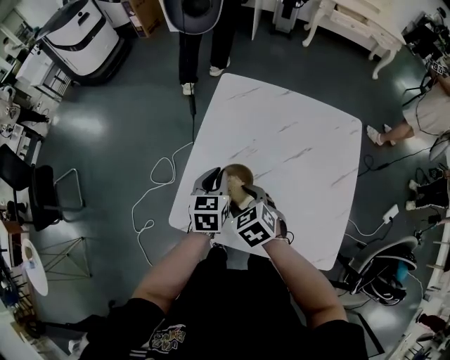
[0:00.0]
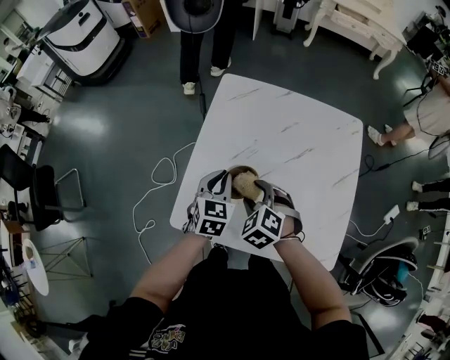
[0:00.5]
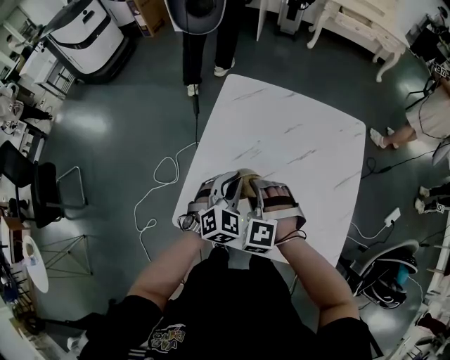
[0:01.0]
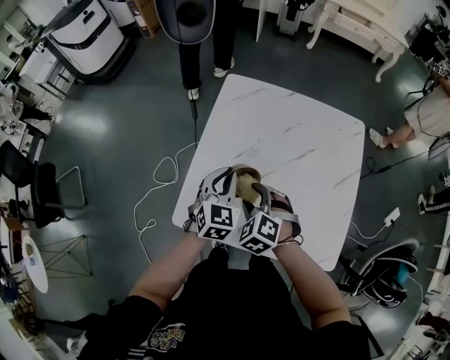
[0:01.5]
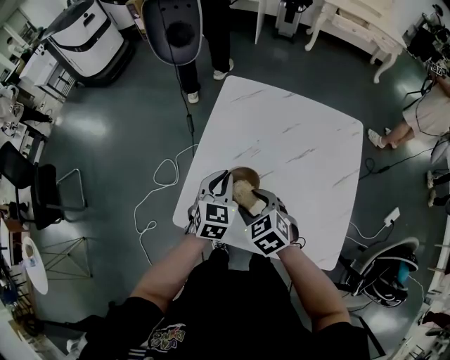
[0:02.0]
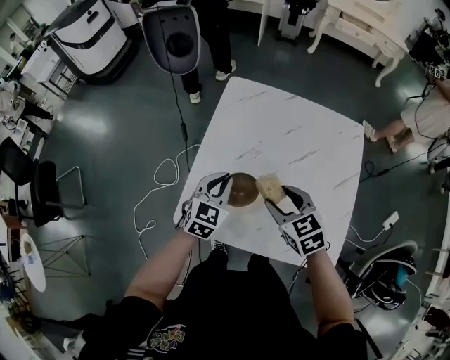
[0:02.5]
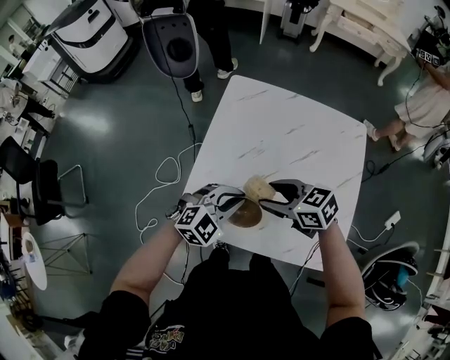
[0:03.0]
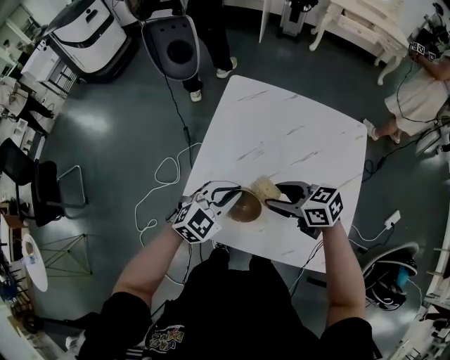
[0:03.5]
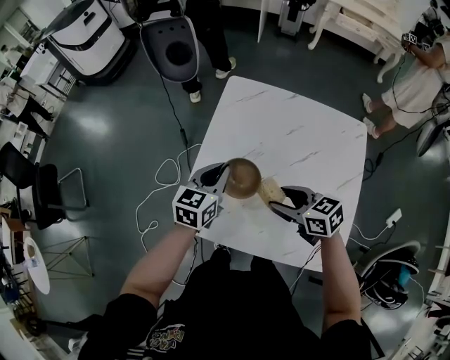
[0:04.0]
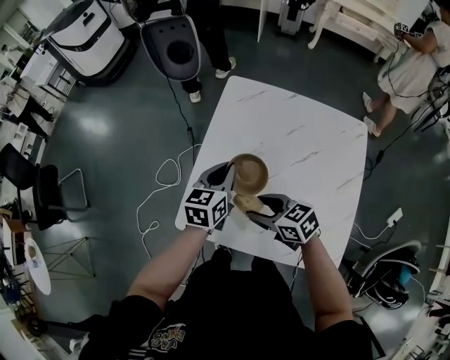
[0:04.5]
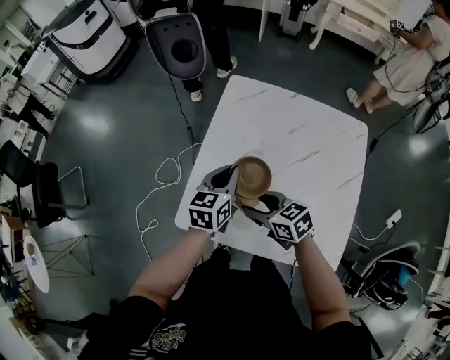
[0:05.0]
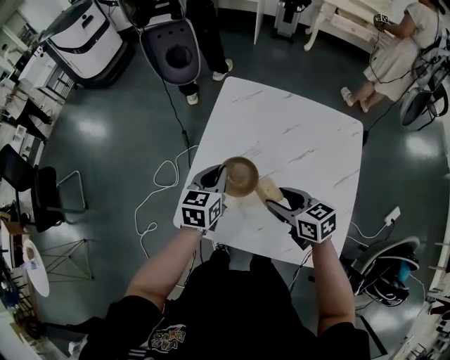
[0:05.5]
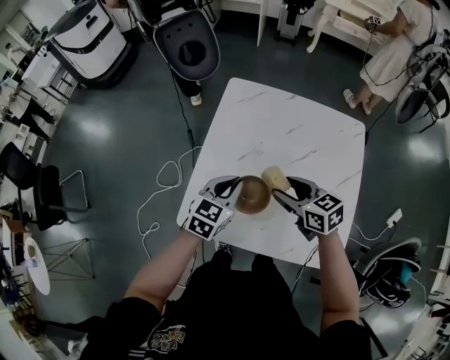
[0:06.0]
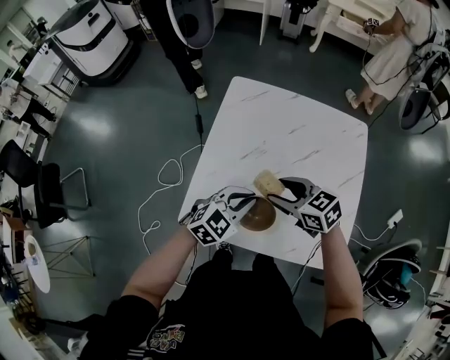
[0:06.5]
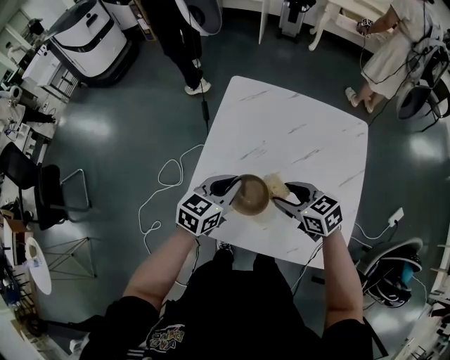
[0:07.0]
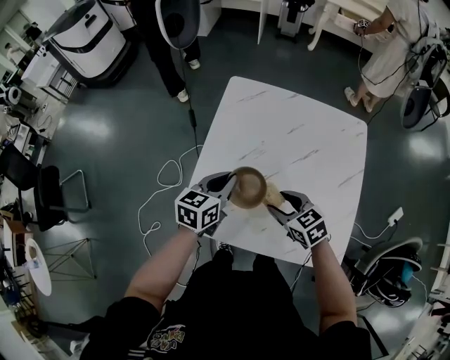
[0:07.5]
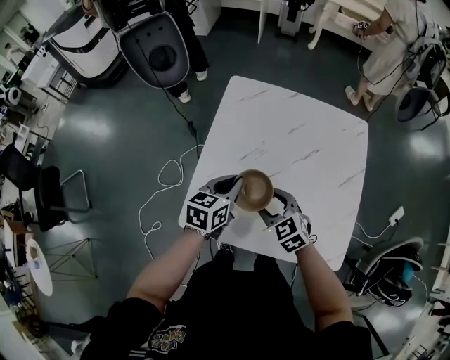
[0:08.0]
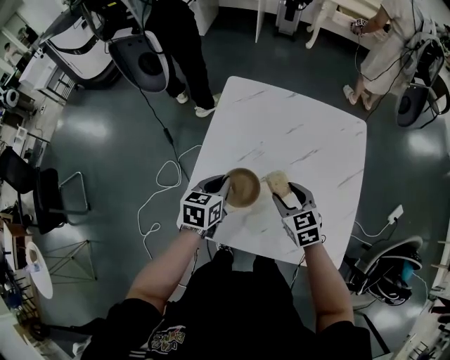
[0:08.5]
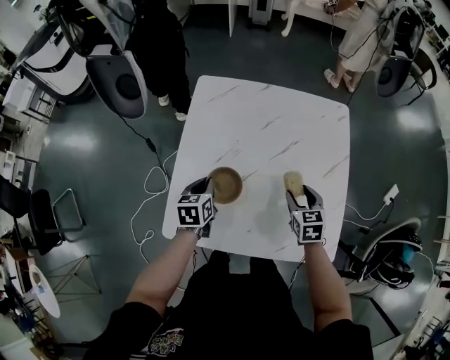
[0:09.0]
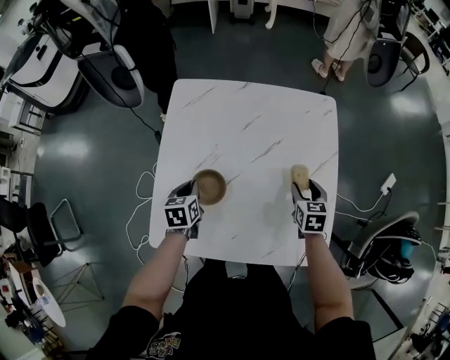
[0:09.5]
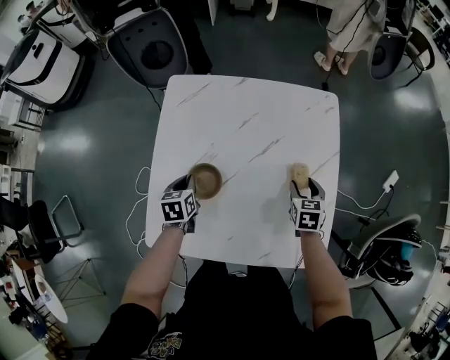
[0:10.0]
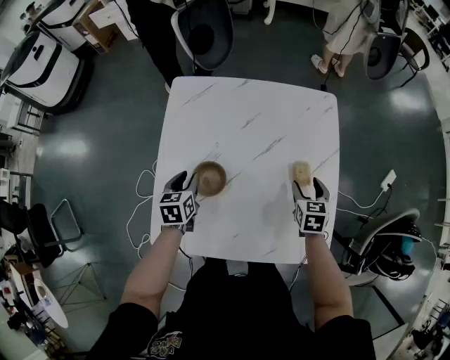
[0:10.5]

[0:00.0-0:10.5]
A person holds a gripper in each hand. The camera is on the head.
0:02.0 to 0:04.0: The left gripper rotates roughly 20 degrees. Meanwhile the right gripper shifts by about 10 cm, and turns by about 30 degrees.
0:04.0 to 0:06.5: The left gripper is displaced backward by approximately 10 cm, and turns by roughly 40 degrees, while the right gripper goes to the left and returns, about 10 cm each way.
0:06.5 to 0:08.5: The right gripper moves downward, some 5 cm, and turns by roughly 30 degrees. The left gripper travels forward and to the left by approximately 10 cm, and rotates around the line of its fingers by approximately 40 degrees, counterclockwise from behind.
0:08.5 to 0:10.5: The right gripper is displaced to the right by approximately 20 cm, and changes its angle by roughly 40 degrees. The left gripper shifts roughly 10 cm downward and forward, and opens up.

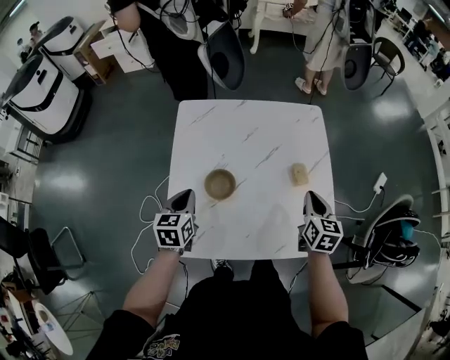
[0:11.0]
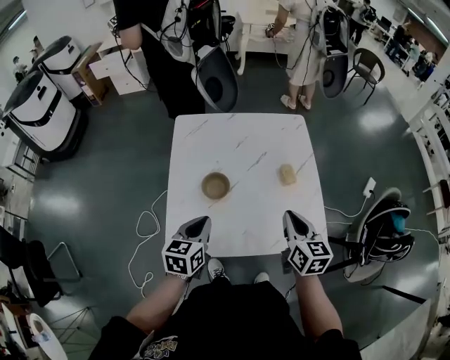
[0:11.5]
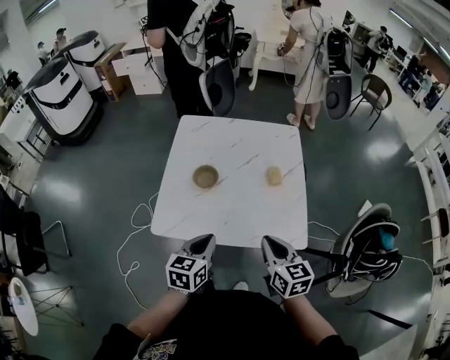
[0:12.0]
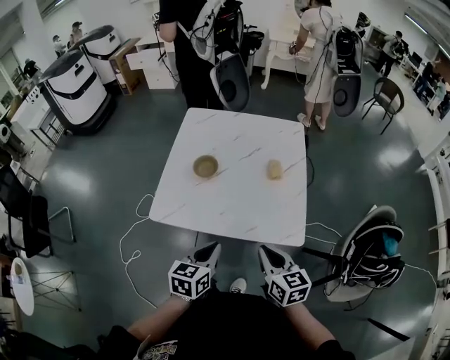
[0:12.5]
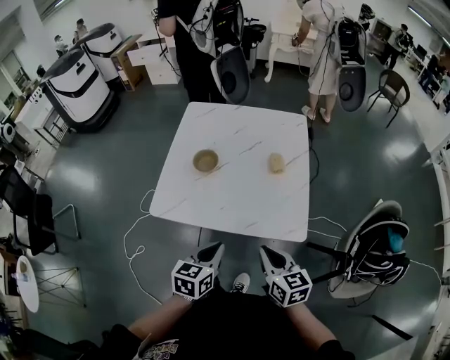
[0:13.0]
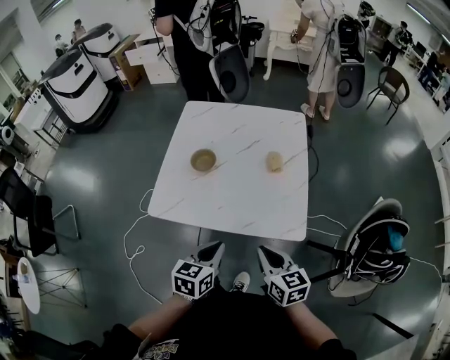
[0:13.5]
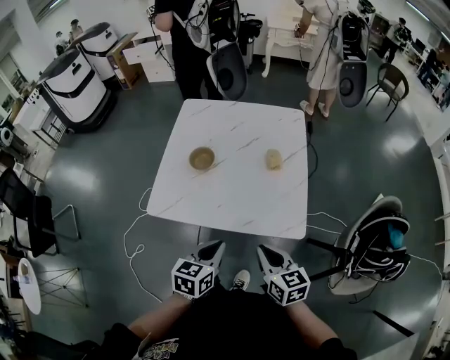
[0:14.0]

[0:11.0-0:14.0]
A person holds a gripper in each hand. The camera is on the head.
0:11.0 to 0:12.5: The right gripper travels backward by roughly 30 cm, and swivels about 30 degrees; the left gripper is displaced backward and to the right by about 35 cm.
0:12.5 to 0:14.0: The grippers make only small movements.

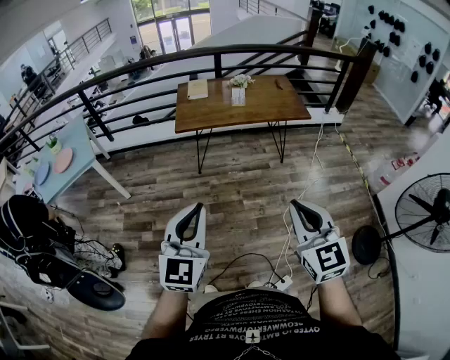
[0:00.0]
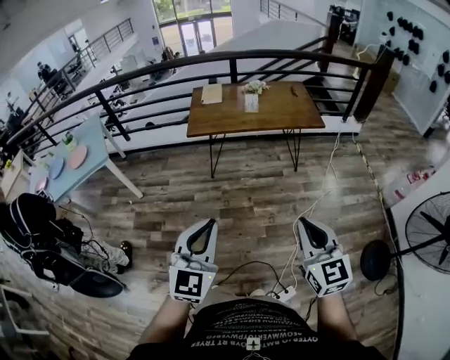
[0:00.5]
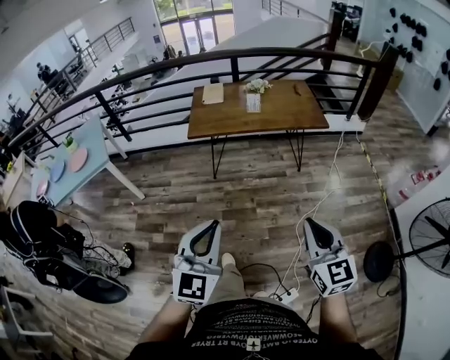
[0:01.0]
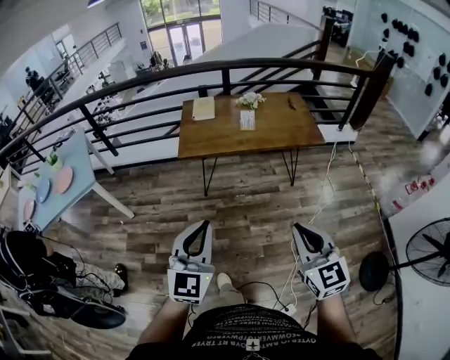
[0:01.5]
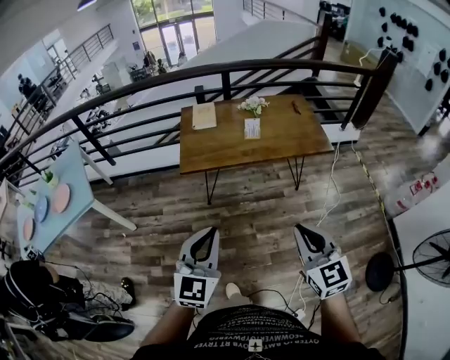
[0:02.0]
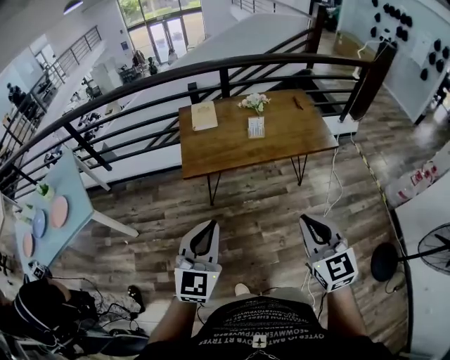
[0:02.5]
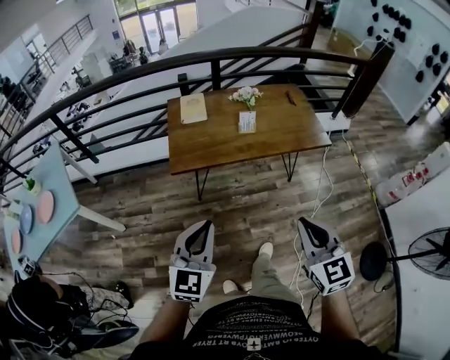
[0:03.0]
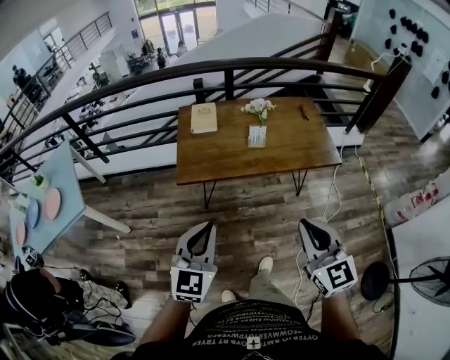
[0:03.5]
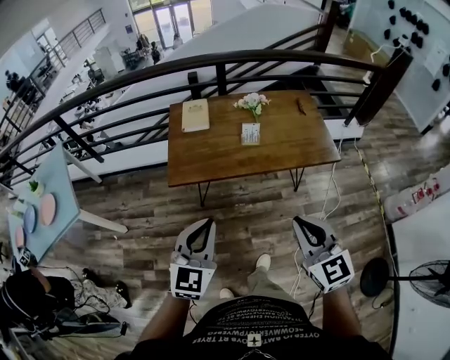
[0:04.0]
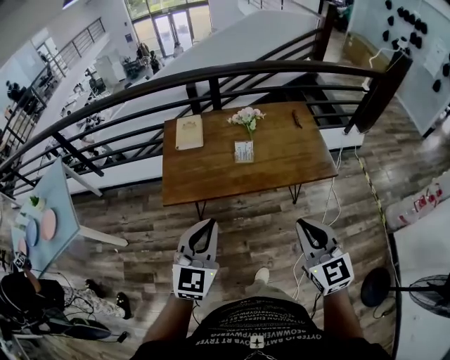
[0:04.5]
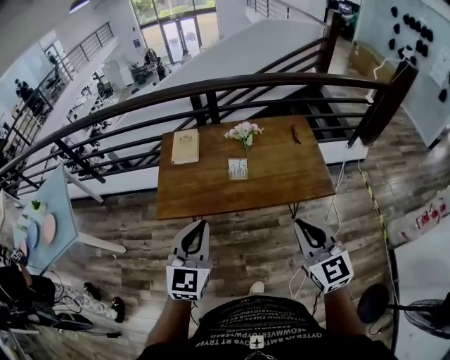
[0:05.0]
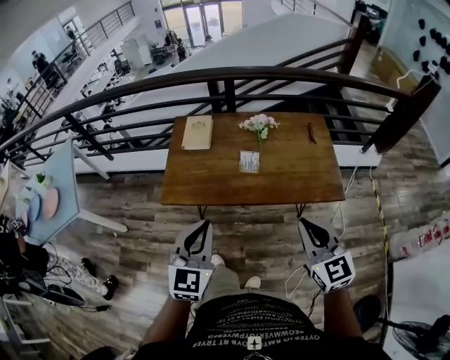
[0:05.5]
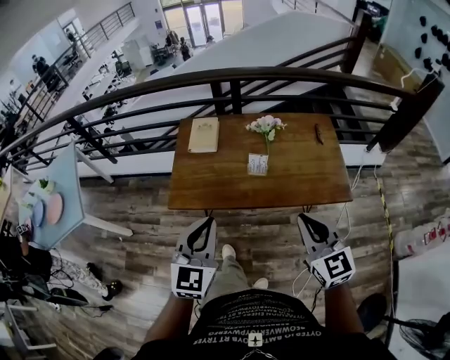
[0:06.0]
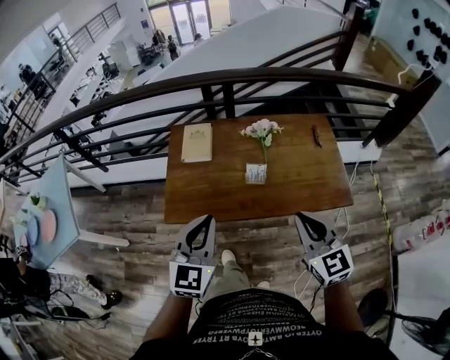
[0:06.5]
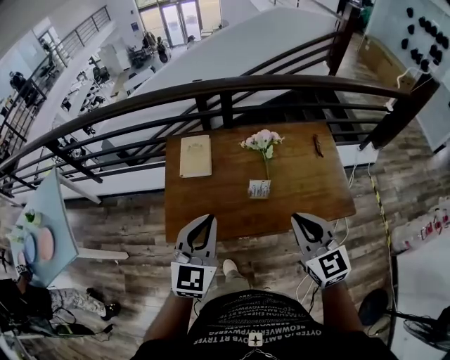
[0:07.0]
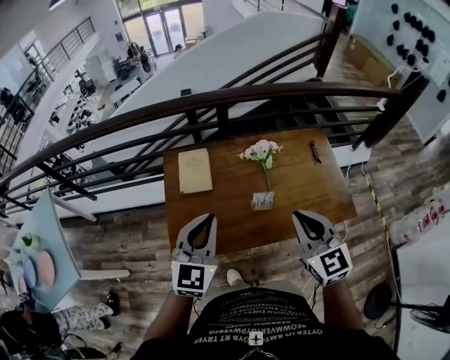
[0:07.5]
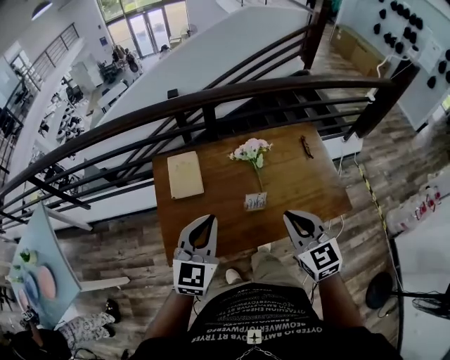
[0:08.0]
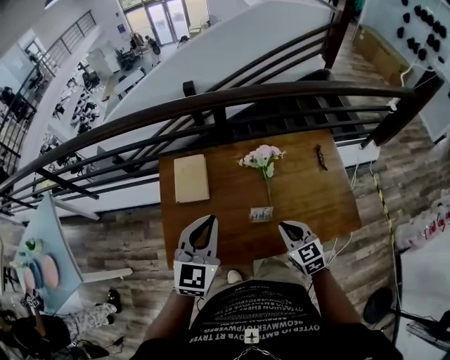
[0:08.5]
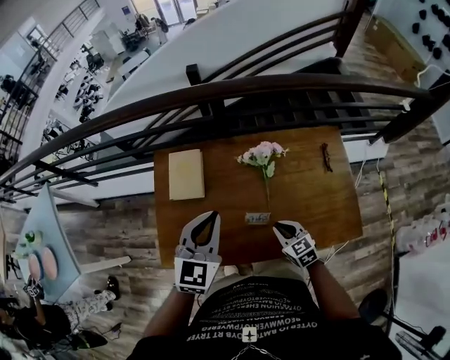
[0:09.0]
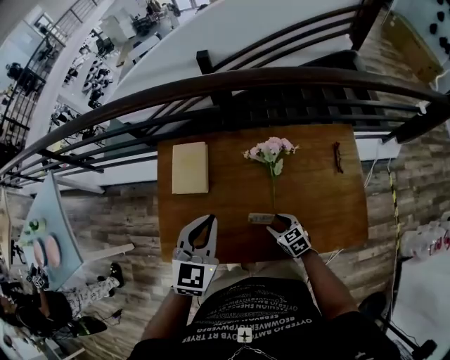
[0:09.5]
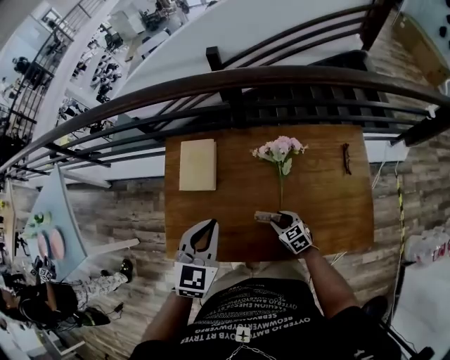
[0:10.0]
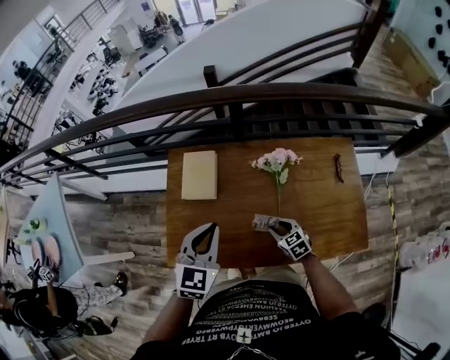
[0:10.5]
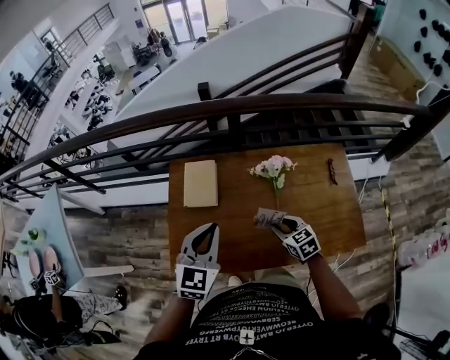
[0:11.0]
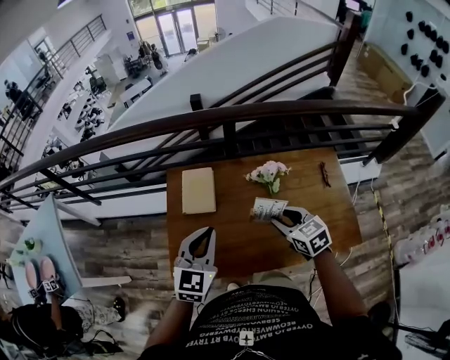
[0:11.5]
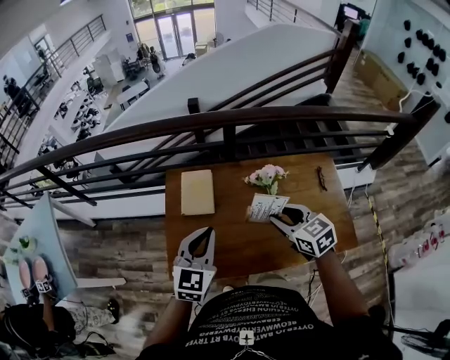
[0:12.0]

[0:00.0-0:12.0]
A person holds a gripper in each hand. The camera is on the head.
0:00.0 to 0:02.0: The two grippers go approximately 25 cm forward.
0:02.0 to 0:04.0: Both grippers travel together forward, roughly 20 cm.
0:04.0 to 0:06.0: Both grippers move forward and to the right, roughly 20 cm.
0:06.0 to 0:08.0: The grippers both shift forward by some 25 cm.
0:08.0 to 0:10.0: The left gripper heads forward and downward, covering about 15 cm, and turns by approximately 20 degrees, while the right gripper moves downward, roughly 35 cm, swivels roughly 40 degrees, and opens its fingers.
0:10.0 to 0:12.0: The right gripper moves upward, roughly 35 cm. The left gripper travels upward and to the left by approximately 10 cm.

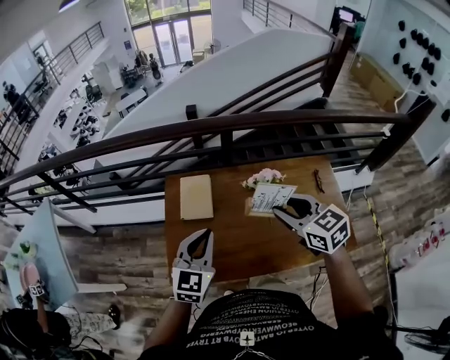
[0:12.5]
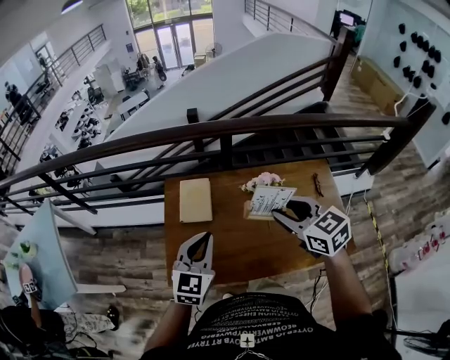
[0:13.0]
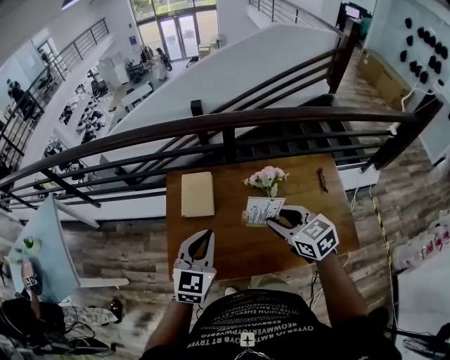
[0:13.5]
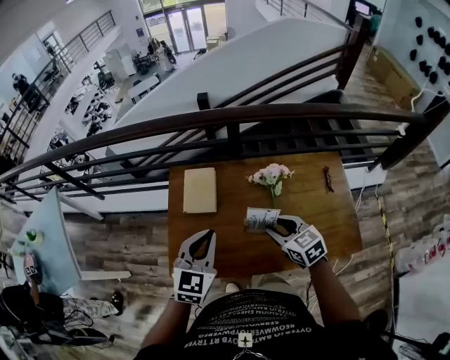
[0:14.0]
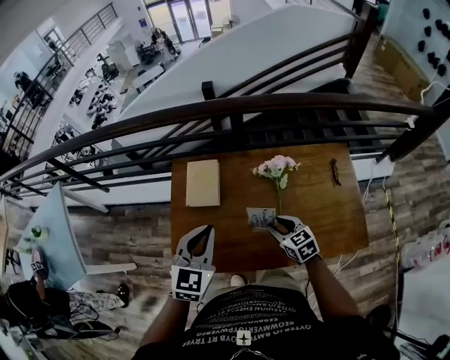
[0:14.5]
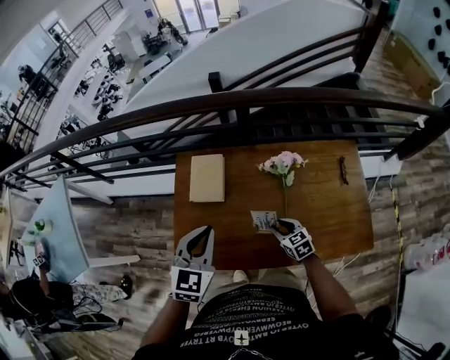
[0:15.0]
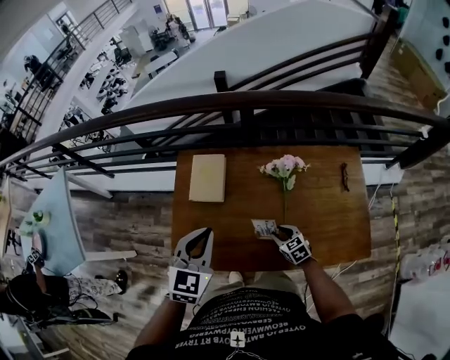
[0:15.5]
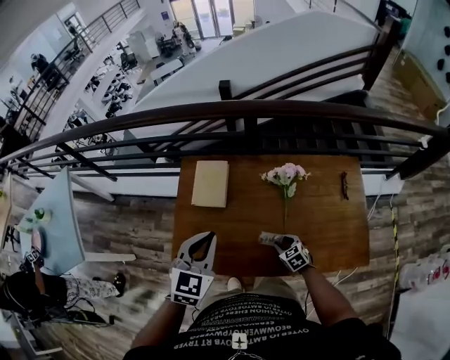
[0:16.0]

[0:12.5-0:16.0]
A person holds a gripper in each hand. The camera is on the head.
0:12.5 to 0:14.5: The right gripper heads downward, covering some 25 cm.
0:14.5 to 0:16.0: The right gripper shifts approximately 15 cm downward.
